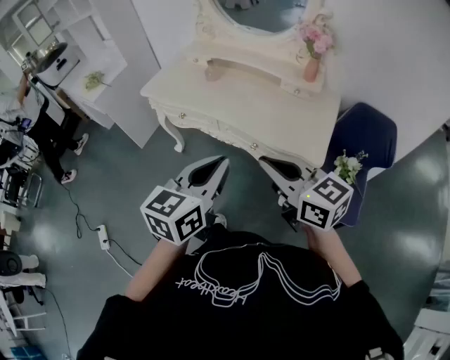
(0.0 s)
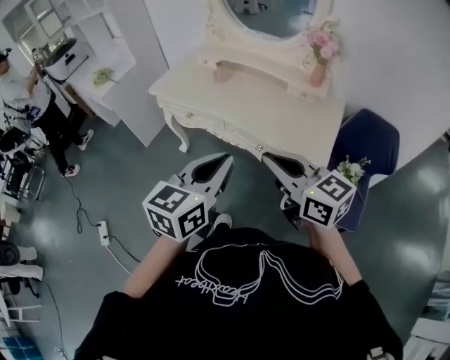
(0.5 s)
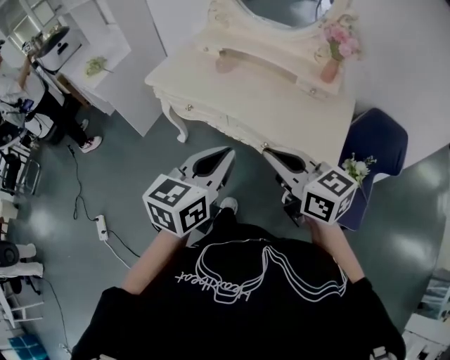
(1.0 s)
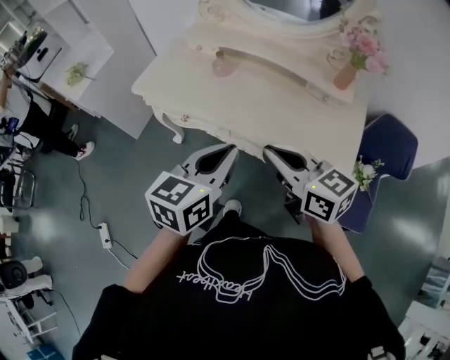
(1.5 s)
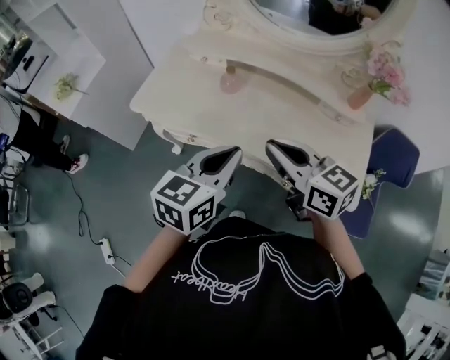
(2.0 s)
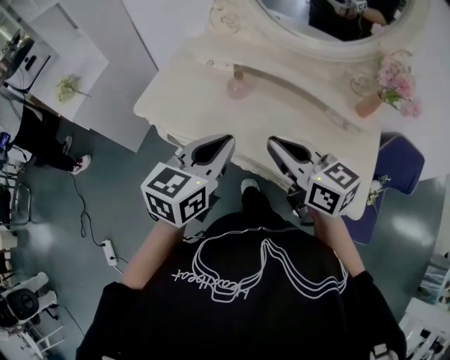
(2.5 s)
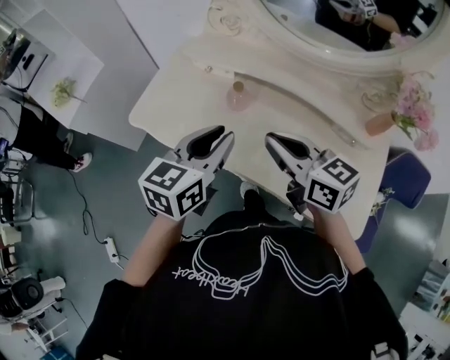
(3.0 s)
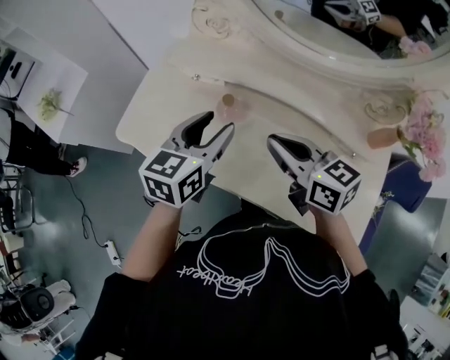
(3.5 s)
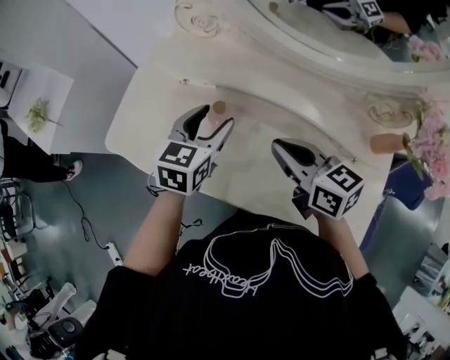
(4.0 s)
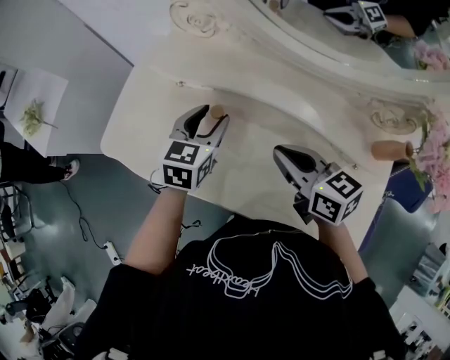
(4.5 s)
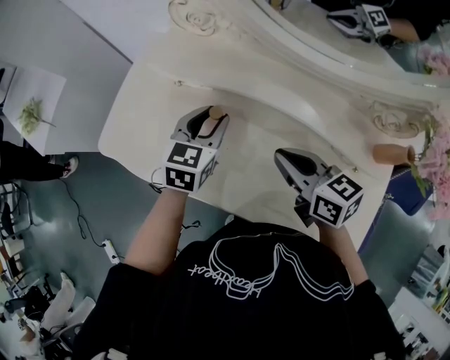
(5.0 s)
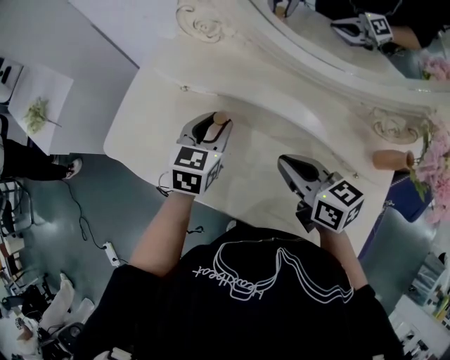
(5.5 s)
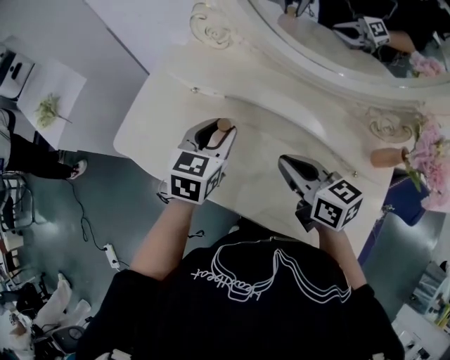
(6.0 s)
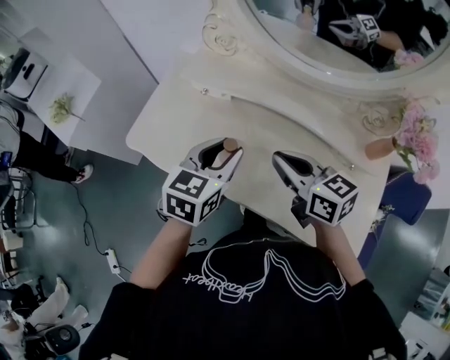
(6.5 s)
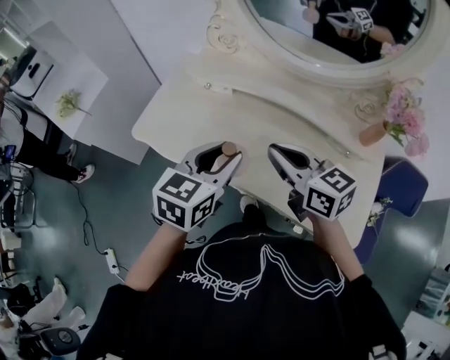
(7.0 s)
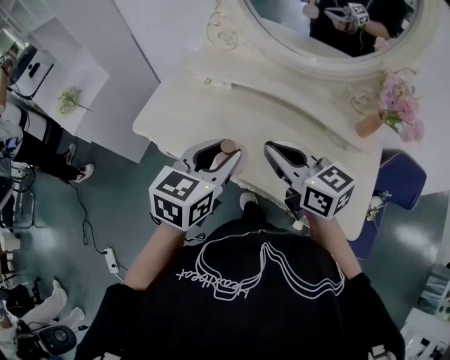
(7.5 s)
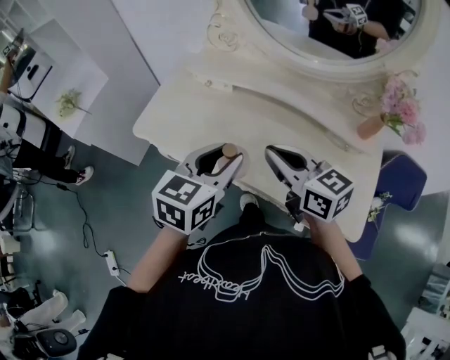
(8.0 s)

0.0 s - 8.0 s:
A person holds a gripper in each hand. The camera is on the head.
0.0 s - 2.0 s: The two grippers go about 30 cm forward.
2.0 s - 4.0 s: The right gripper shifts some 25 cm forward and downward; the left gripper travels forward by some 30 cm, and opens.
4.0 s - 6.0 s: The left gripper closes.
6.0 s - 8.0 s: The right gripper is displaced backward, upward and to the left by approximately 15 cm. The left gripper shifts some 20 cm backward and upward.

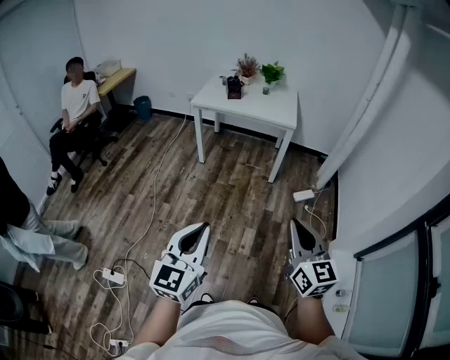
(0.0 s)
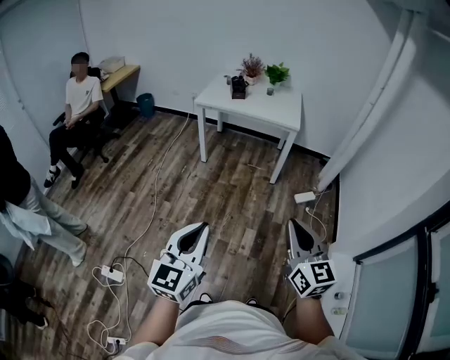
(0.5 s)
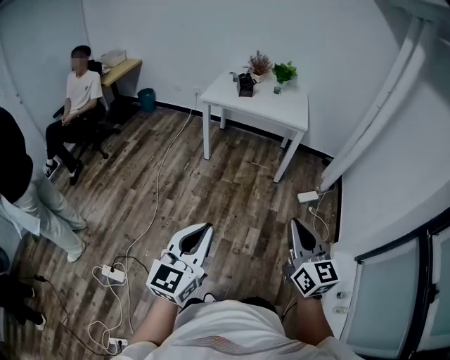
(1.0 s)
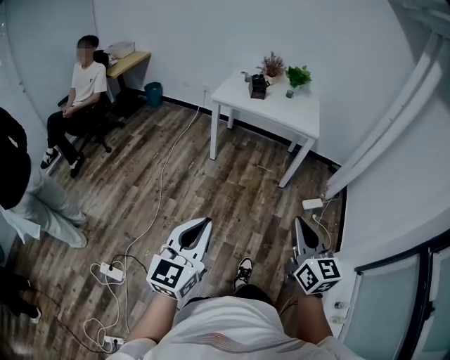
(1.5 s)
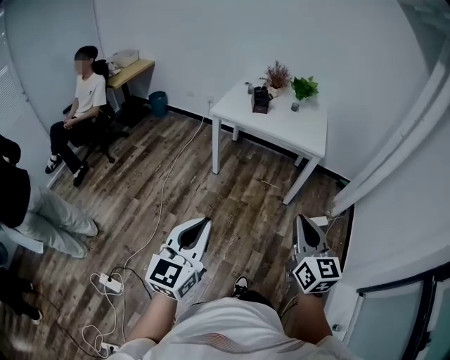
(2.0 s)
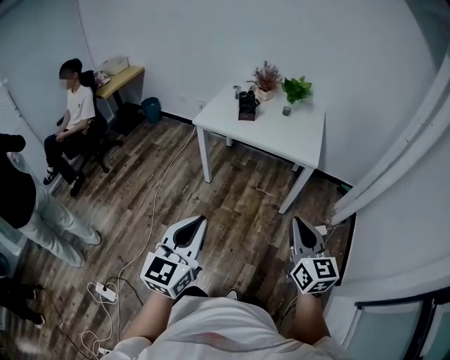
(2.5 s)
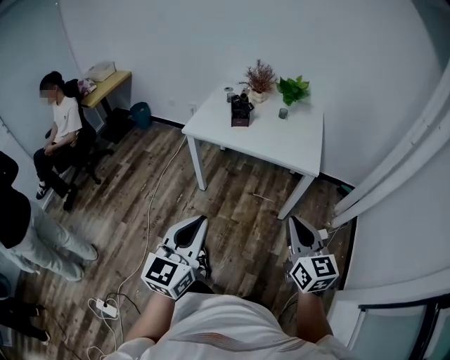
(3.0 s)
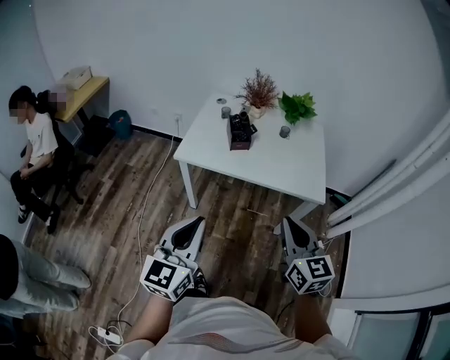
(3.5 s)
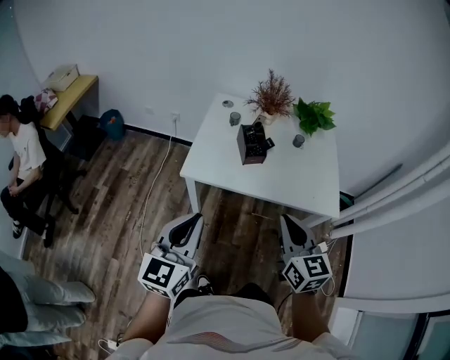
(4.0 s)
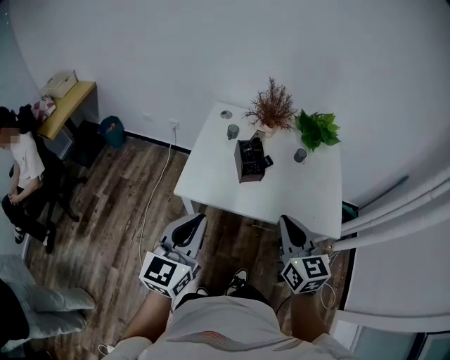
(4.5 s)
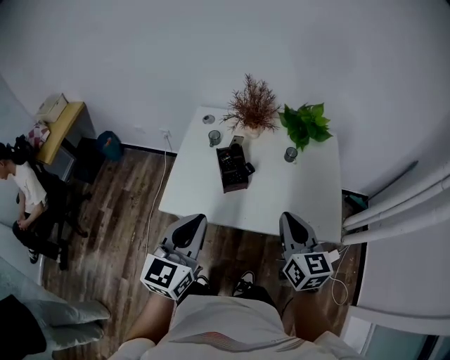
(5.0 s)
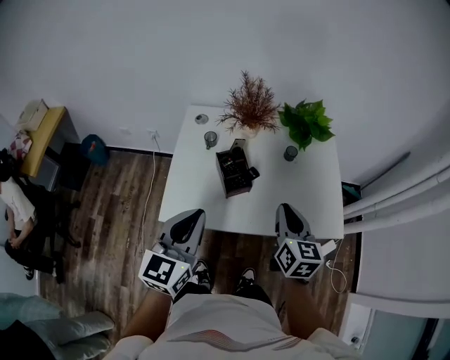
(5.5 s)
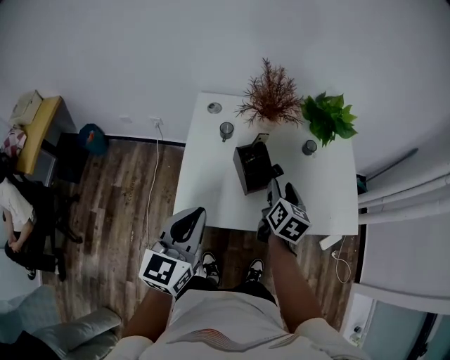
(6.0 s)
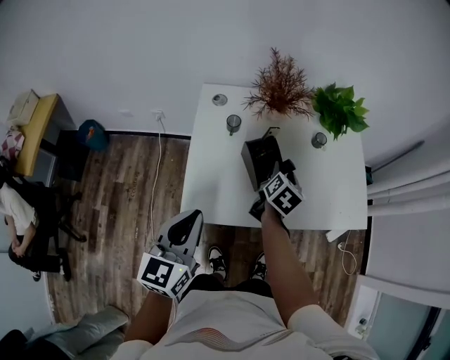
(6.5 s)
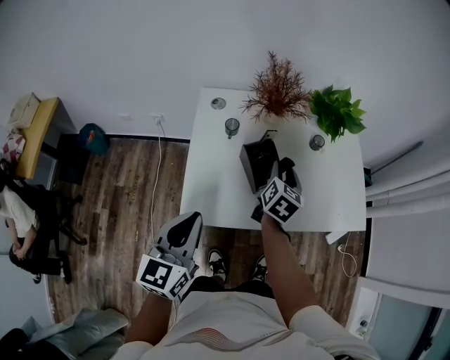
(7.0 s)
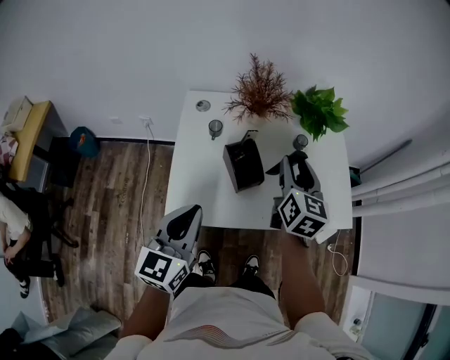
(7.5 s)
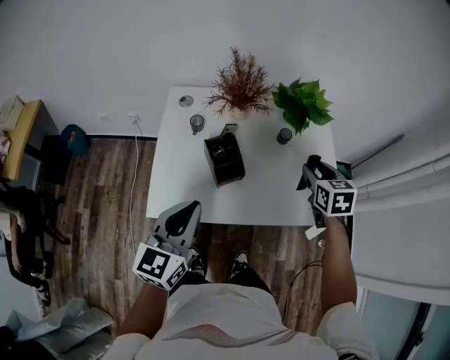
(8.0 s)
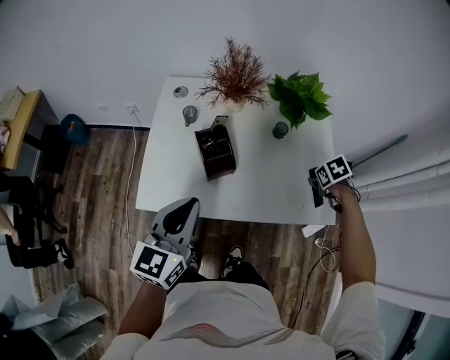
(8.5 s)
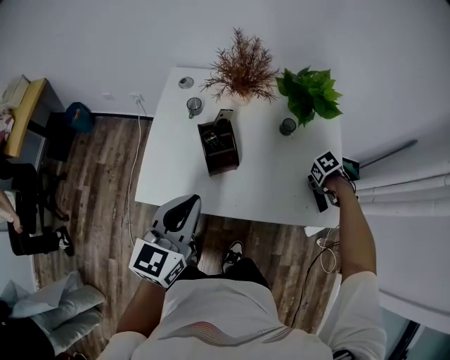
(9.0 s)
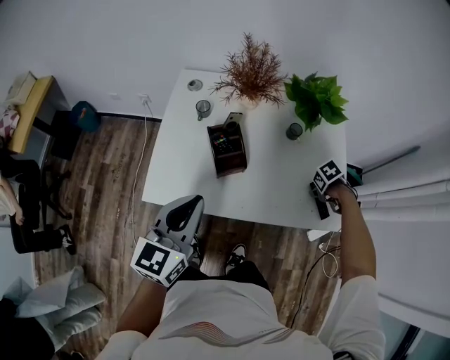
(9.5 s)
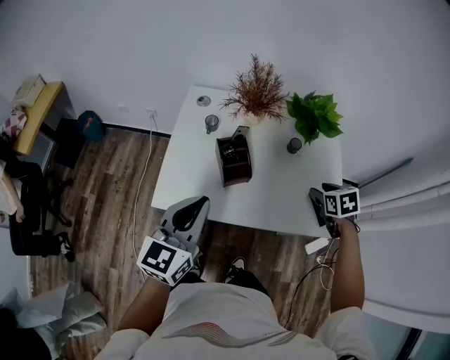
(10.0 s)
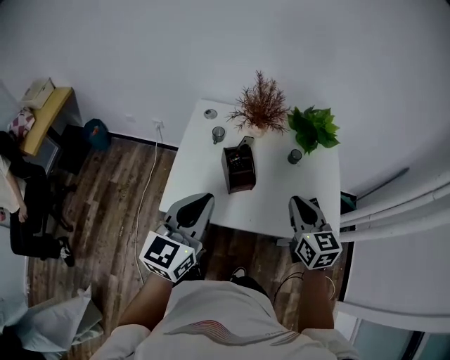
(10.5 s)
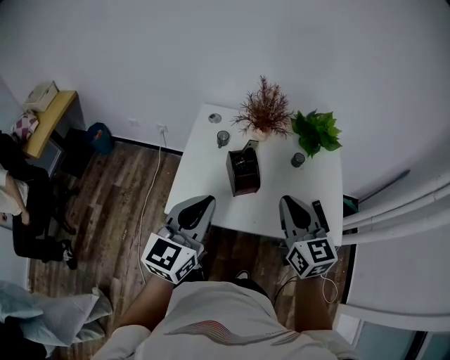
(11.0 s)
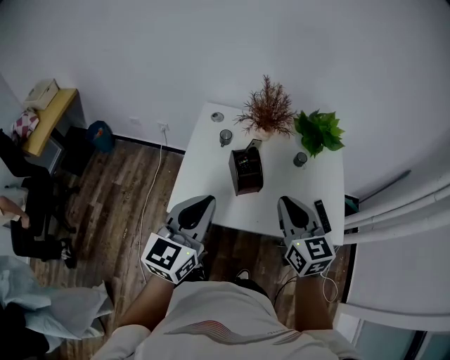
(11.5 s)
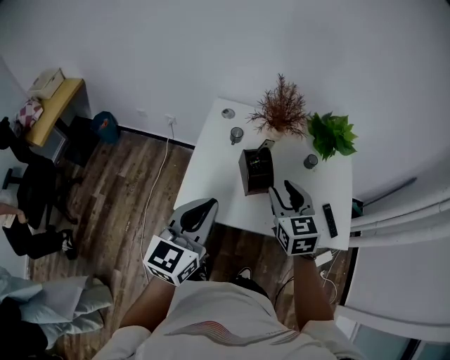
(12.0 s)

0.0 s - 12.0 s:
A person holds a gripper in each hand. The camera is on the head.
0.0 s - 2.0 s: Both grippers travel together forward, about 20 cm.
2.0 s - 4.0 s: Both grippers are carried forward, approximately 60 cm.
4.0 s - 6.0 s: The right gripper heads forward and downward, covering roughly 35 cm, turns by approximately 40 degrees, and opens, while the left gripper travels forward by about 25 cm.
6.0 s - 8.0 s: The left gripper shifts approximately 5 cm to the right. The right gripper moves to the right and forward, about 20 cm, and swivels roughly 30 degrees.
8.0 s - 10.0 s: The right gripper goes downward and returns, approximately 20 cm each way, and turns by about 20 degrees.
10.0 s - 12.0 s: The right gripper goes approximately 30 cm to the left and upward, tips its fingers upward by roughly 30 degrees, and closes and opens again, while the left gripper is displaced to the left by some 5 cm.

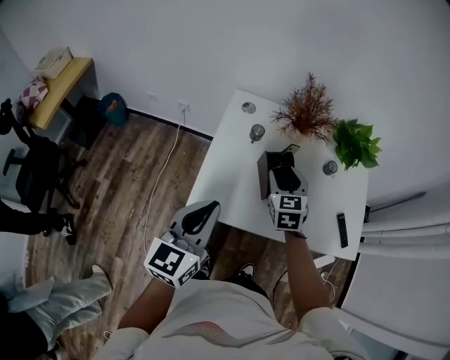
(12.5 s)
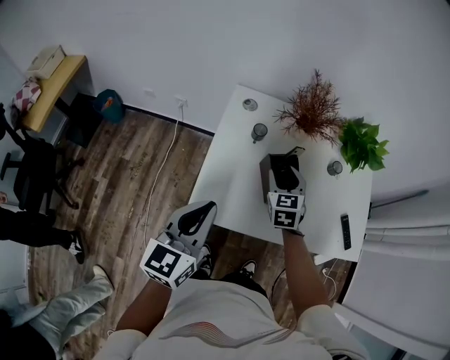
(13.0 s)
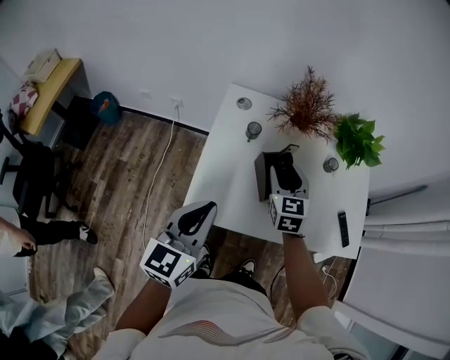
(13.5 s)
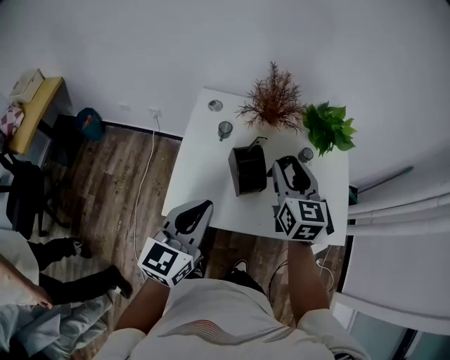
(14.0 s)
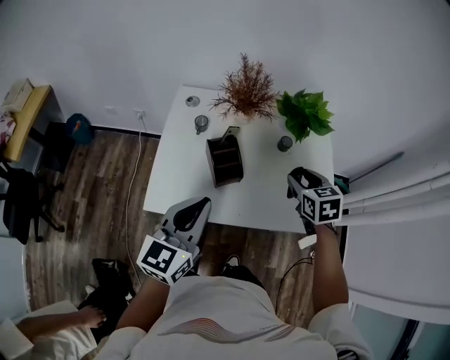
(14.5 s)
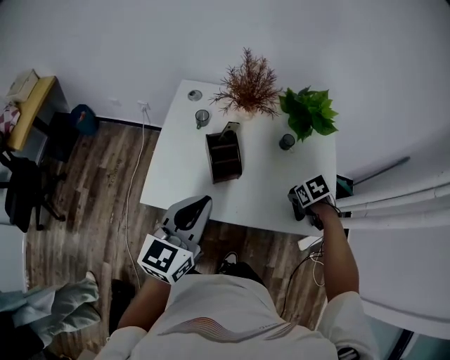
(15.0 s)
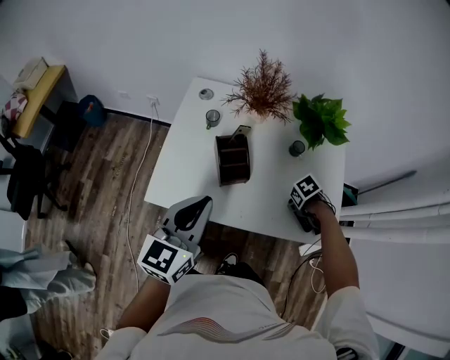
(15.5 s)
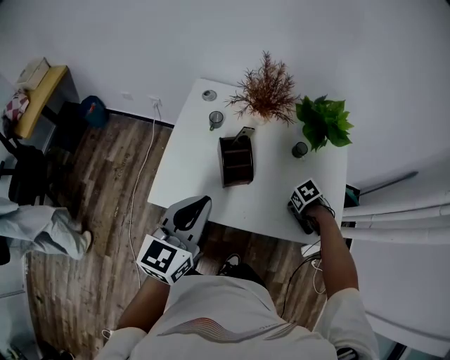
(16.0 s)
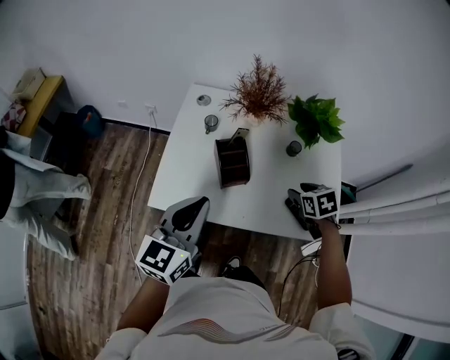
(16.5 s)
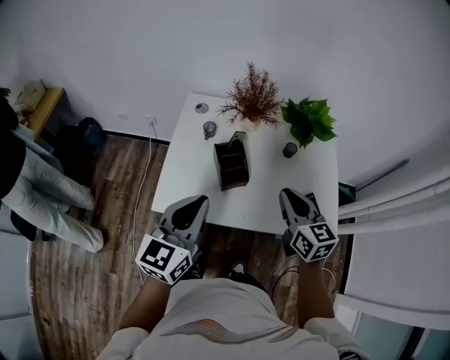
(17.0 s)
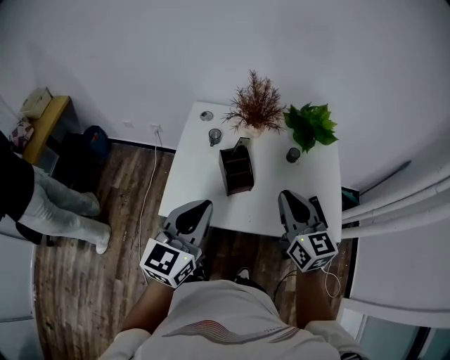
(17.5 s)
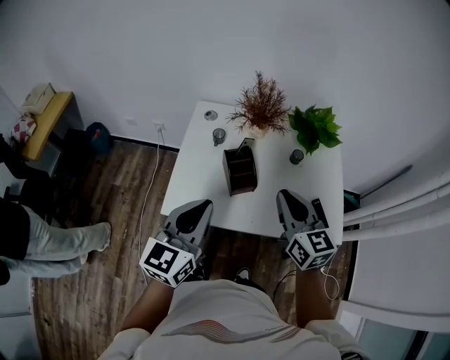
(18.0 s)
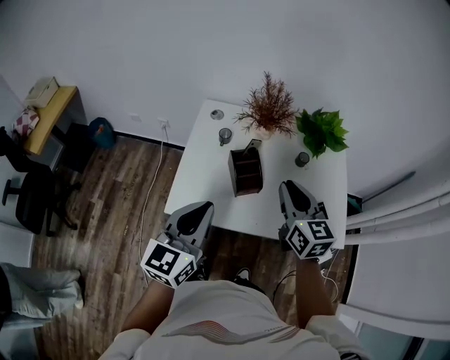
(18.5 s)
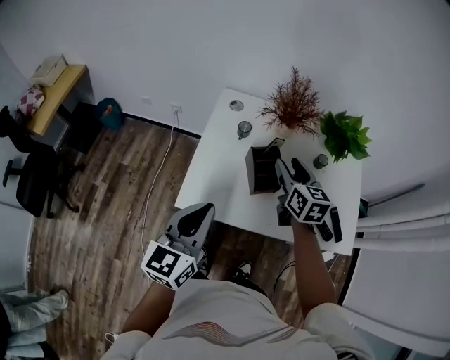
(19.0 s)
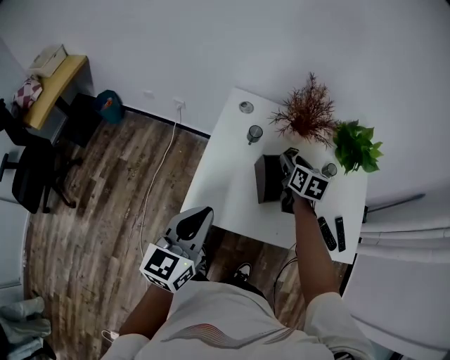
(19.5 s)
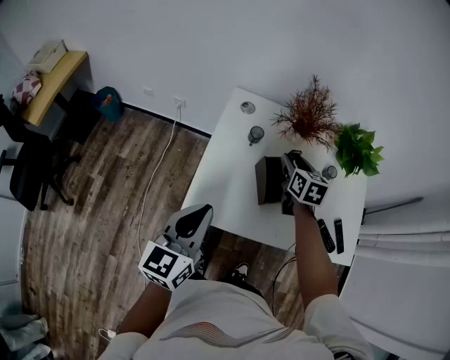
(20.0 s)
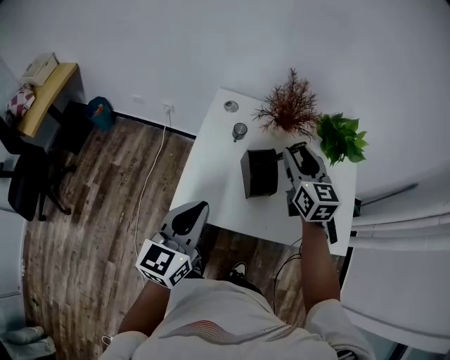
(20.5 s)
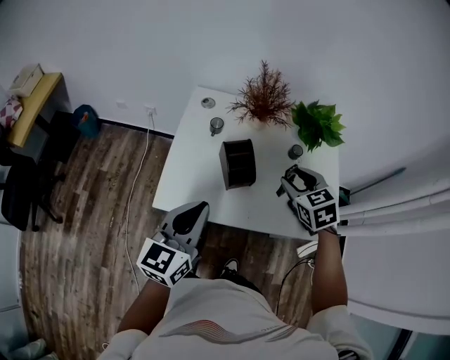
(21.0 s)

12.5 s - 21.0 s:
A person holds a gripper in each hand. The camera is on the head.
12.5 s - 14.5 s: The right gripper shifts about 25 cm to the right; the left gripper moves to the right, some 15 cm.
14.5 s - 16.5 s: The right gripper goes some 10 cm downward.
16.5 s - 19.0 s: The left gripper goes about 10 cm to the left, while the right gripper moves to the left and upward, about 20 cm, tilts its fingers some 40 degrees upward, and closes, then reopens.
19.0 s - 21.0 s: The right gripper moves to the right and backward, roughly 10 cm, and turns by roughly 40 degrees.
